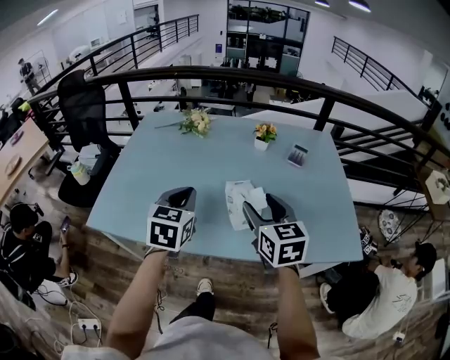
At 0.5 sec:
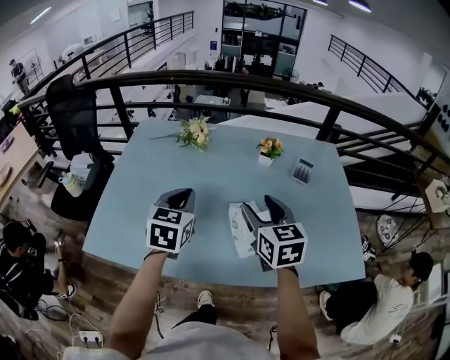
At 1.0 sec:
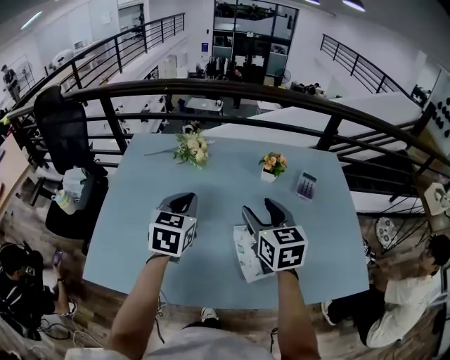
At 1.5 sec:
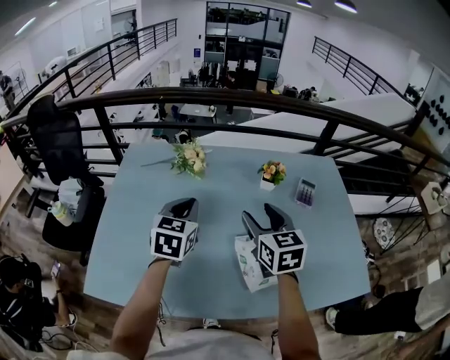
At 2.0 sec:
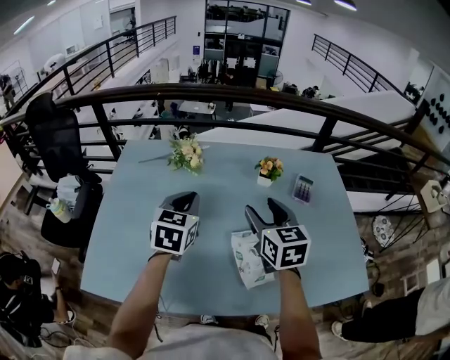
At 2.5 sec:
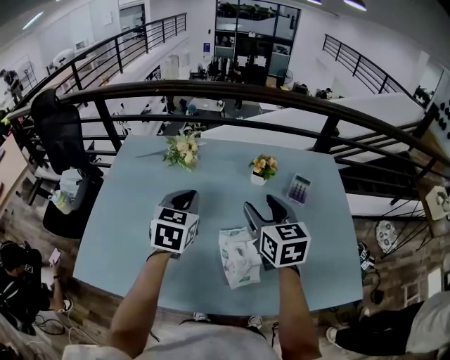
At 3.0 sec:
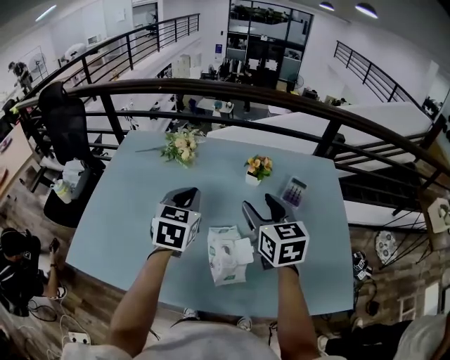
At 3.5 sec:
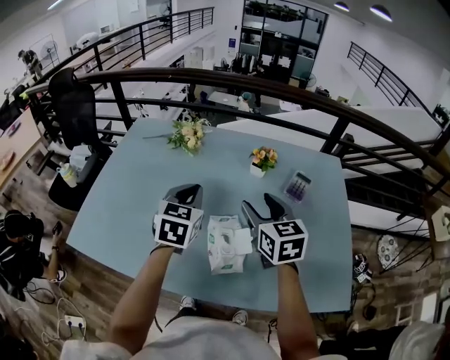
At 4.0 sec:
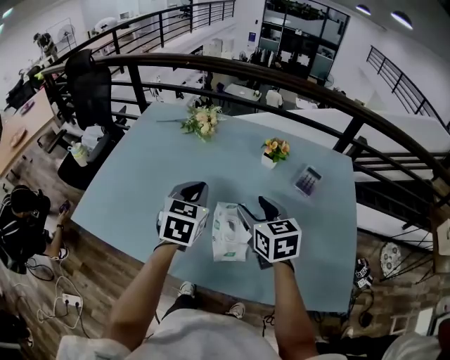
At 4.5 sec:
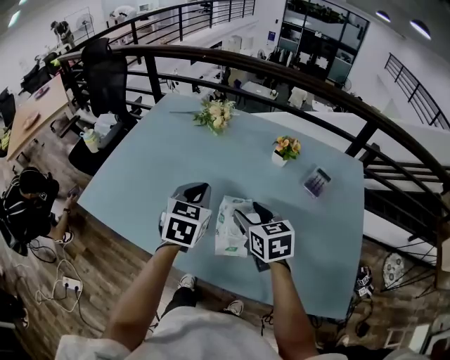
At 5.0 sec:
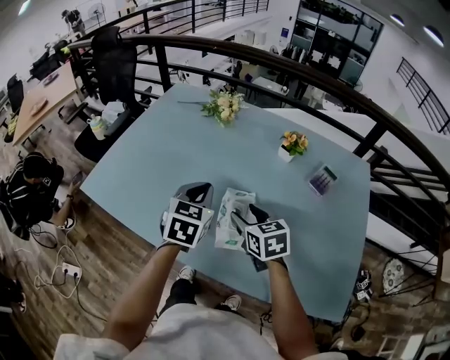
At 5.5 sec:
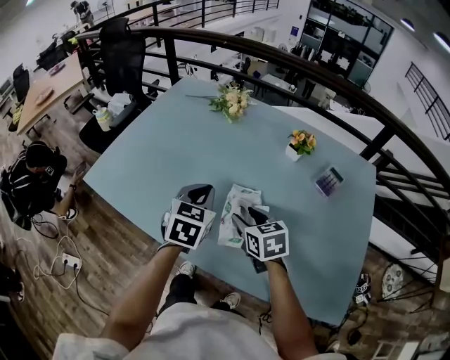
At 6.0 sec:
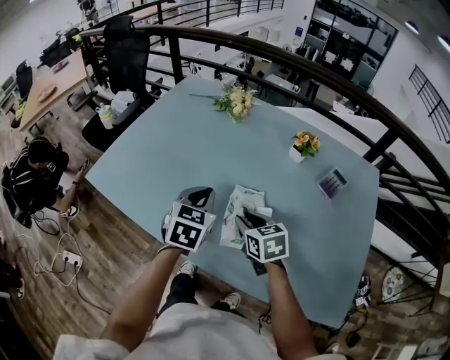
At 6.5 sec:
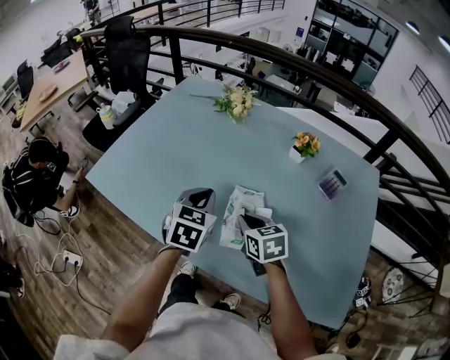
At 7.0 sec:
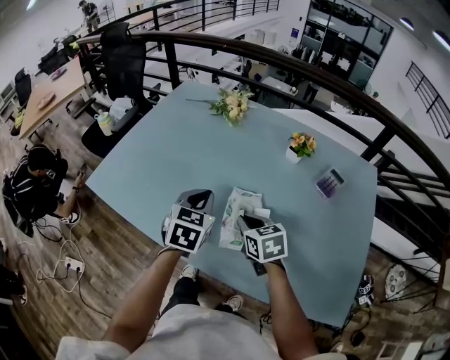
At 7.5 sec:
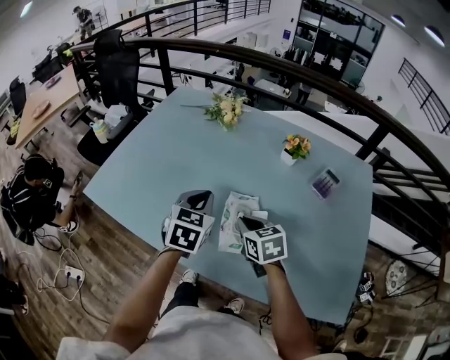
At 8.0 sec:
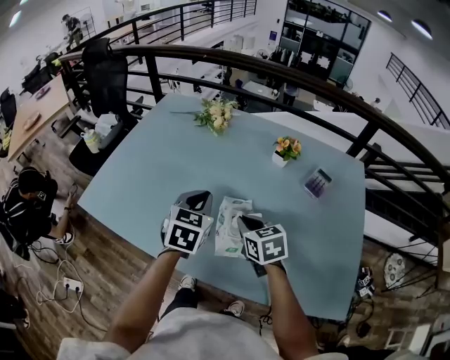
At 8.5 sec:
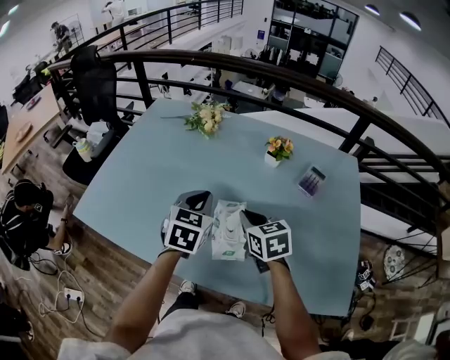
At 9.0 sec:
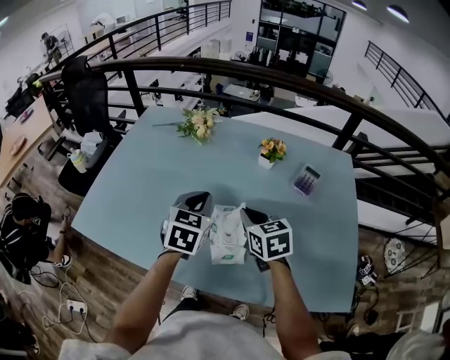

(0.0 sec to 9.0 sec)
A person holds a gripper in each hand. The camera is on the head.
0.0 sec - 2.0 sec: The grippers both shift forward by some 20 cm.
2.0 sec - 4.5 sec: The left gripper moves backward and to the right, roughly 15 cm; the right gripper is displaced downward and backward by about 15 cm, and turns by about 30 degrees.
4.5 sec - 7.0 sec: The left gripper changes place by roughly 5 cm. The right gripper is displaced downward by approximately 5 cm, and closes its fingers.
7.0 sec - 9.0 sec: The right gripper goes roughly 10 cm upward and to the right, while the left gripper is displaced to the right by about 5 cm.

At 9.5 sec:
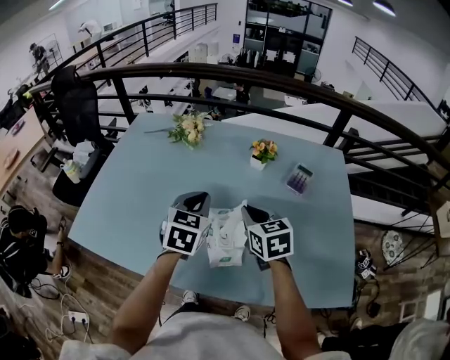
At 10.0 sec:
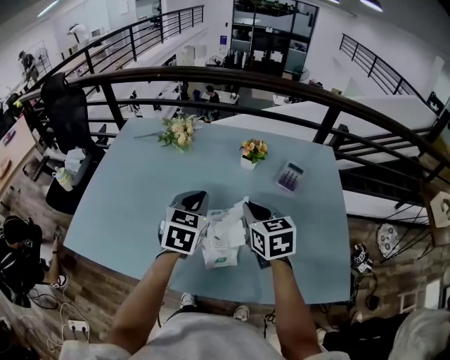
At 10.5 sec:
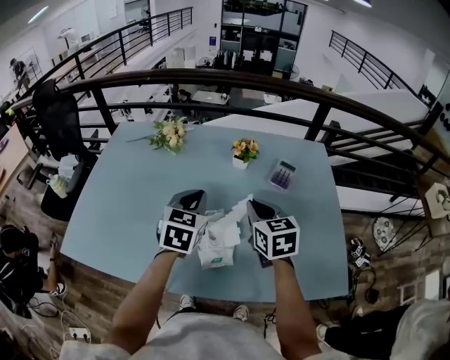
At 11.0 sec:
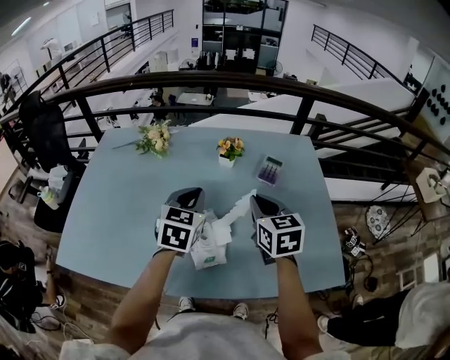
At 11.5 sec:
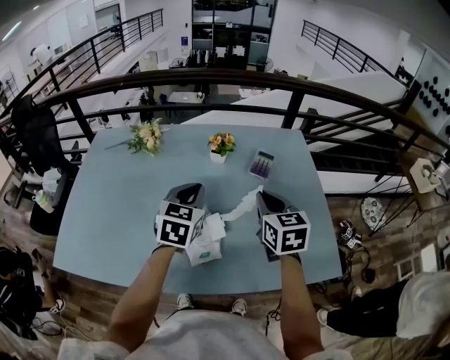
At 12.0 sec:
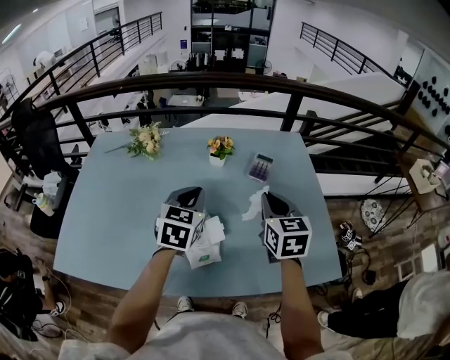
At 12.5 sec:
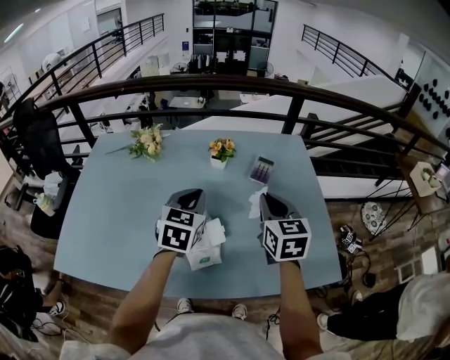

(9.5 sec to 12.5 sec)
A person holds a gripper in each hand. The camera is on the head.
9.5 sec - 11.0 sec: The left gripper goes some 5 cm to the right; the right gripper goes approximately 10 cm to the right and upward.
11.0 sec - 12.5 sec: The right gripper ends up some 5 cm from where it was.

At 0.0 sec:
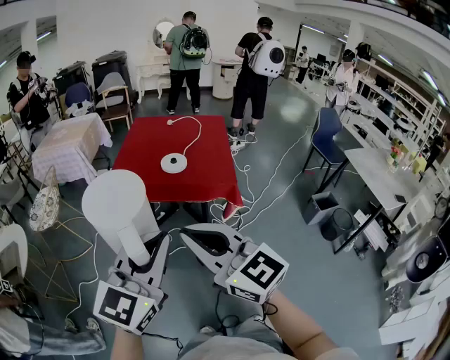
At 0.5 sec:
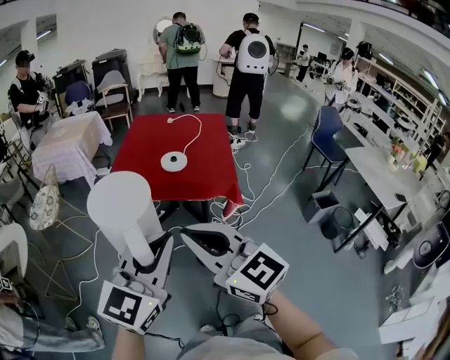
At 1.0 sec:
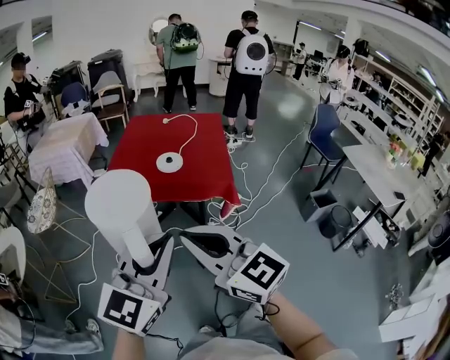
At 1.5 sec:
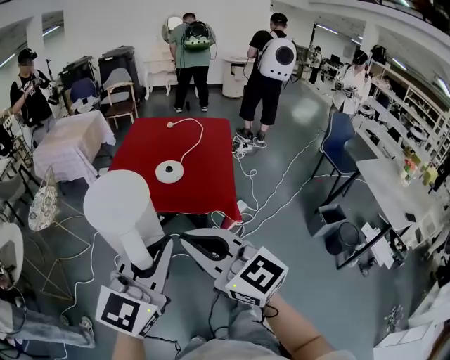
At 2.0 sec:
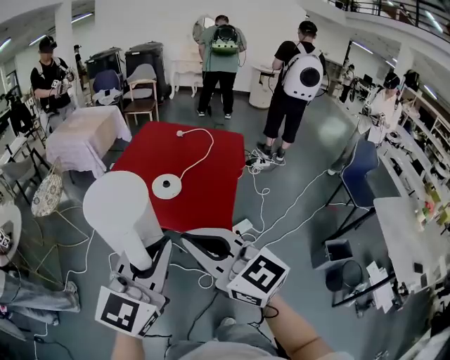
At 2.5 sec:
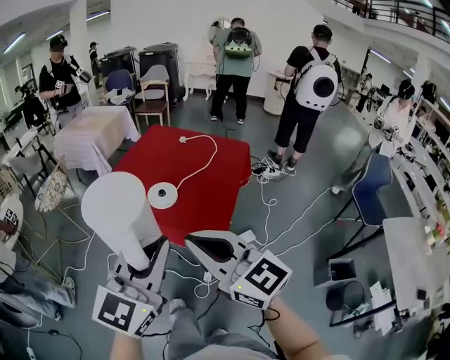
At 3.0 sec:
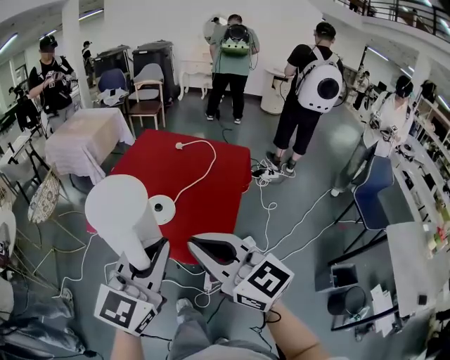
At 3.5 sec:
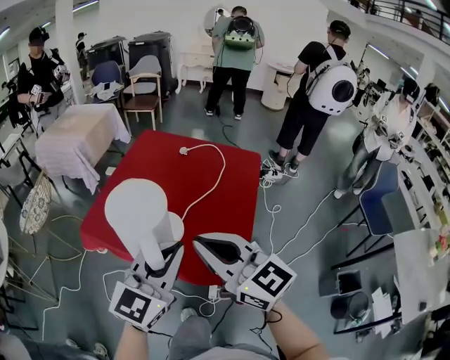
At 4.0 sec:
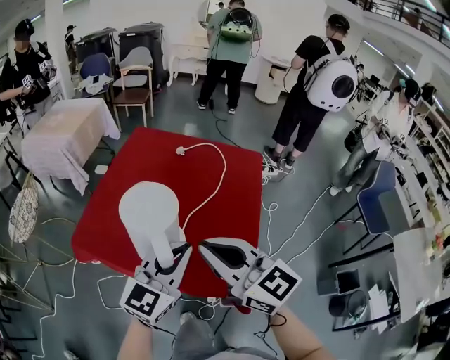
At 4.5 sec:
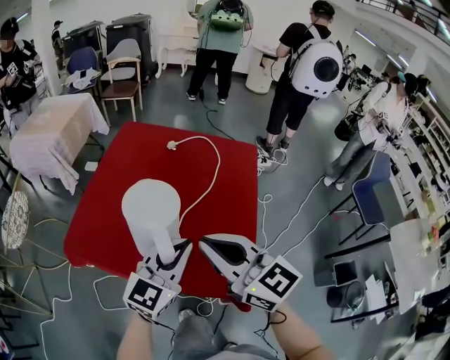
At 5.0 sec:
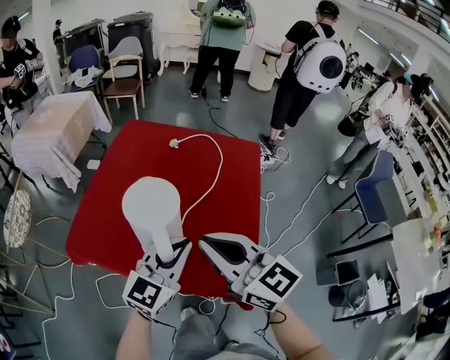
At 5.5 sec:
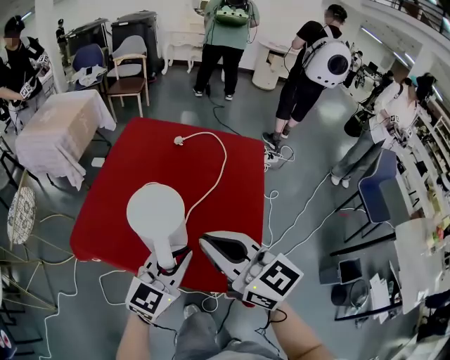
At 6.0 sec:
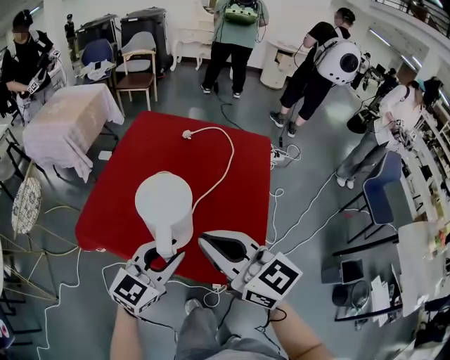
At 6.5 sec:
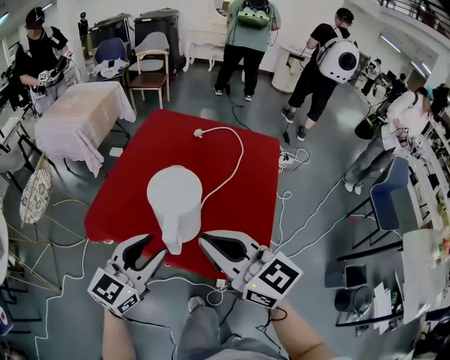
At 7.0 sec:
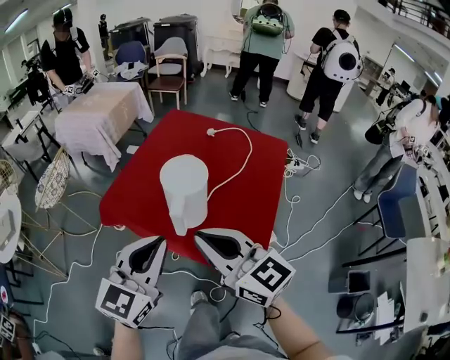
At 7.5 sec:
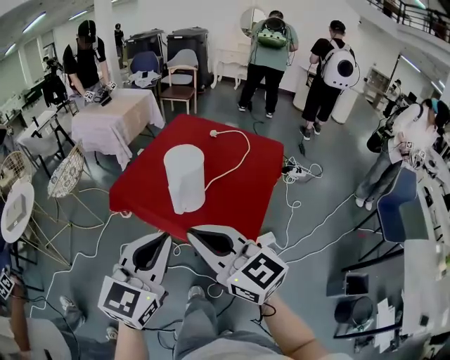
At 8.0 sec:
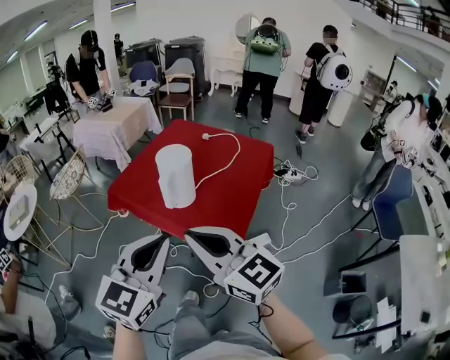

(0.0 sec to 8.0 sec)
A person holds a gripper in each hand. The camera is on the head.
0.0 sec - 2.0 sec: Both grippers move to the right and forward, approximately 25 cm.
2.0 sec - 4.0 sec: The right gripper moves forward, some 30 cm. Meanwhile the left gripper heads forward and downward, covering some 35 cm.
4.0 sec - 6.0 sec: The left gripper moves downward, about 5 cm, and opens its fingers.
6.0 sec - 8.0 sec: The left gripper moves backward and upward, about 30 cm, turns by approximately 30 degrees, and closes up. The right gripper heads backward, covering approximately 25 cm.

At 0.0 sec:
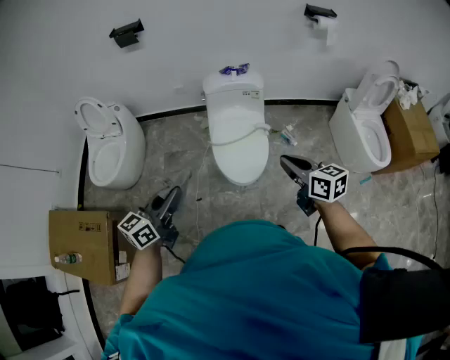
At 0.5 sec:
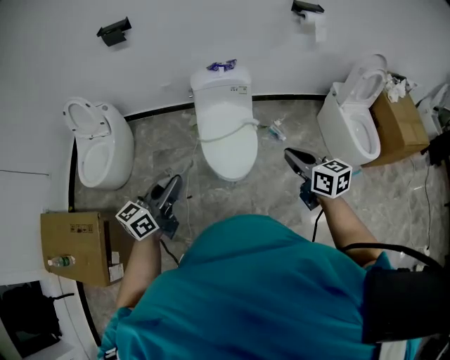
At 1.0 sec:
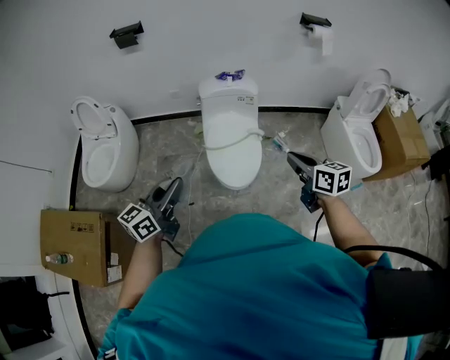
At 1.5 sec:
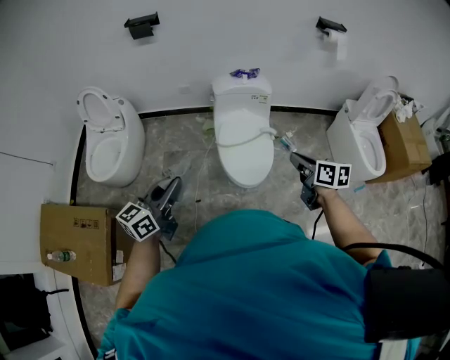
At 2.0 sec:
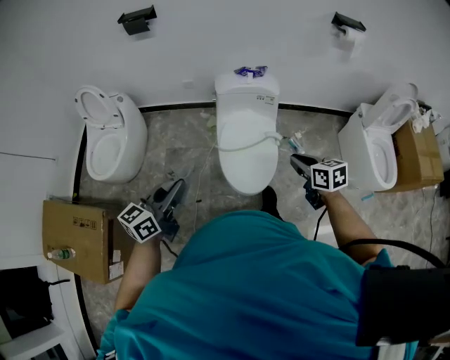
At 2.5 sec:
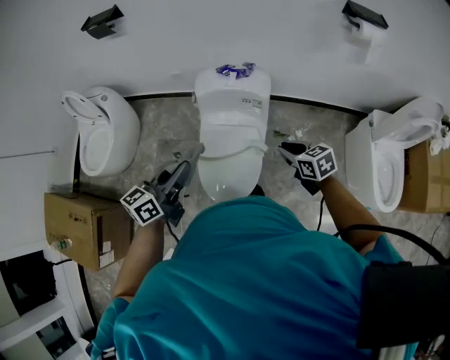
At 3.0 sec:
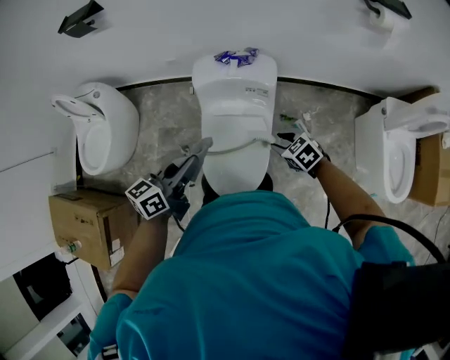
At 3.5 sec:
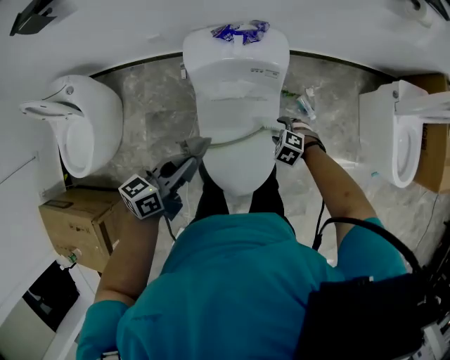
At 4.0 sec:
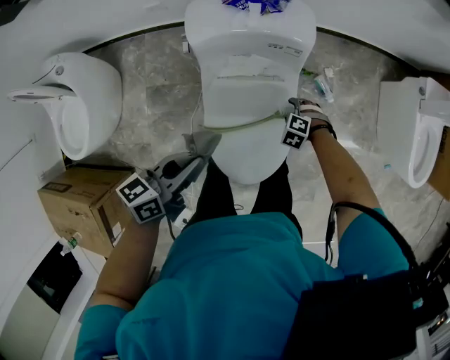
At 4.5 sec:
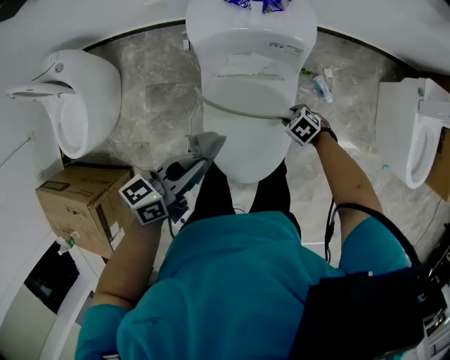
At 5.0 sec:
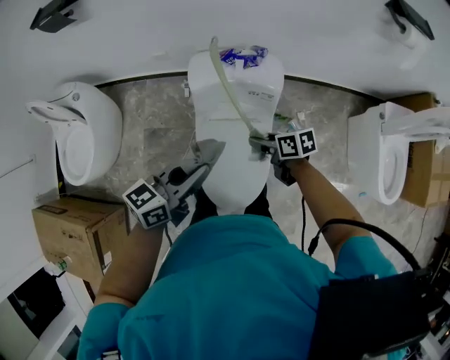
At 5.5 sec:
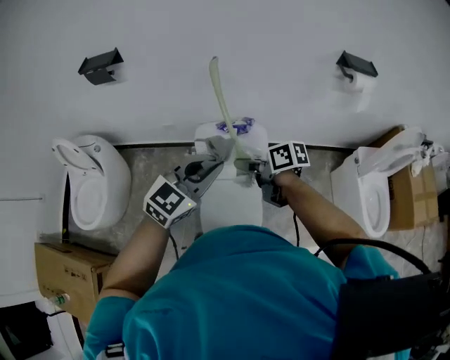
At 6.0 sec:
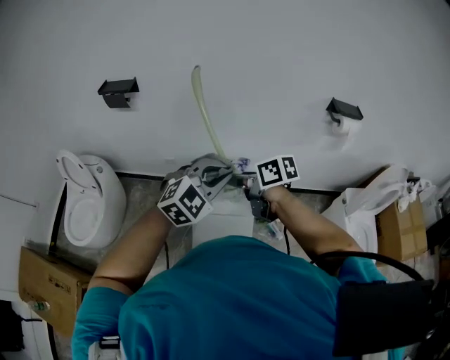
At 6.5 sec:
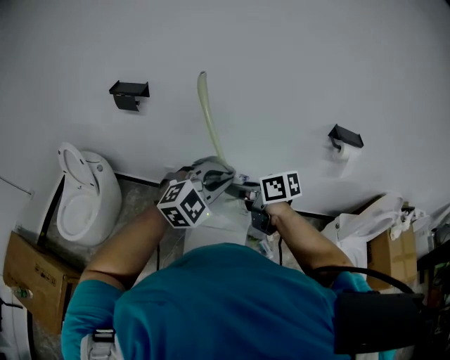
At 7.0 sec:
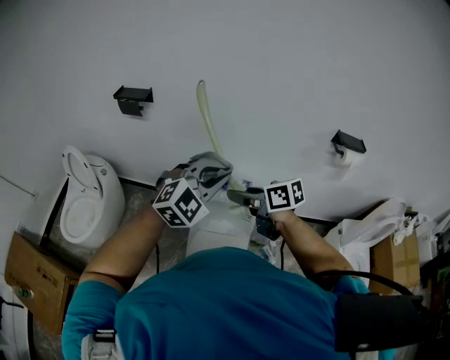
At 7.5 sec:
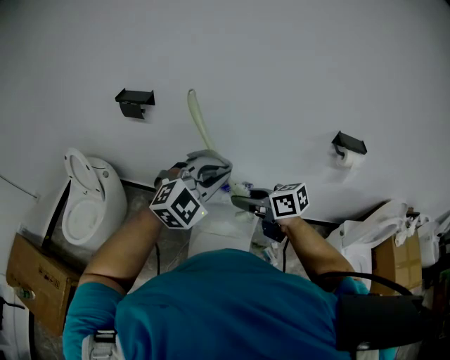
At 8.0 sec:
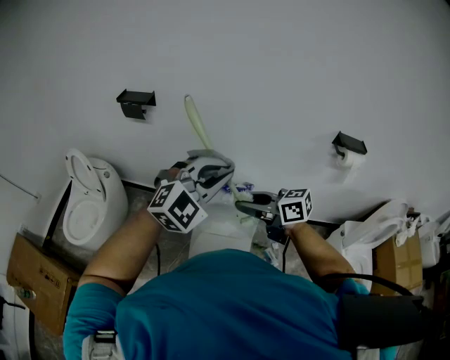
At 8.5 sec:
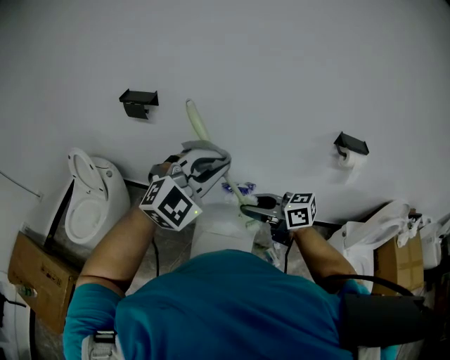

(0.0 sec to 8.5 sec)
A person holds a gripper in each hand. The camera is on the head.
0.0 sec - 2.0 sec: The left gripper moves forward, some 10 cm, and moves approximately 10 cm to the left and comes back. The right gripper shifts approximately 15 cm forward and downward.
2.0 sec - 4.0 sec: The left gripper changes place by about 40 cm, and swivels some 30 degrees, while the right gripper moves downward, roughly 50 cm, angles its fingers downward, by about 50 degrees, and opens.
4.0 sec - 6.5 sec: The right gripper shifts approximately 60 cm upward, tilts its fingers roughly 60 degrees upward, and closes up, while the left gripper shifts about 40 cm upward, and twists some 90 degrees clockwise, seen from behind.
6.5 sec - 8.5 sec: The right gripper moves backward, roughly 5 cm, and swivels roughly 30 degrees. Meanwhile the left gripper heads upward, covering approximately 10 cm.
